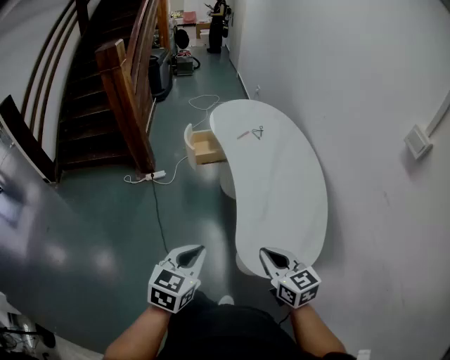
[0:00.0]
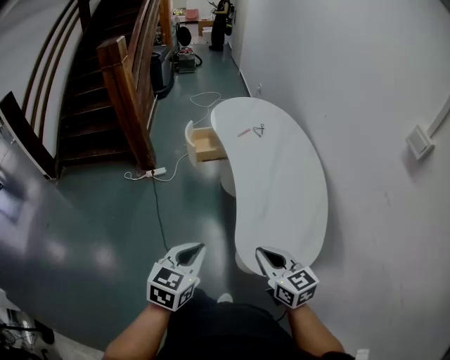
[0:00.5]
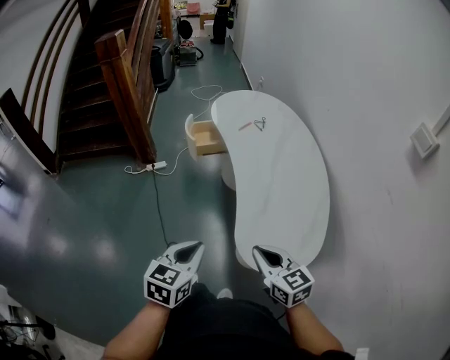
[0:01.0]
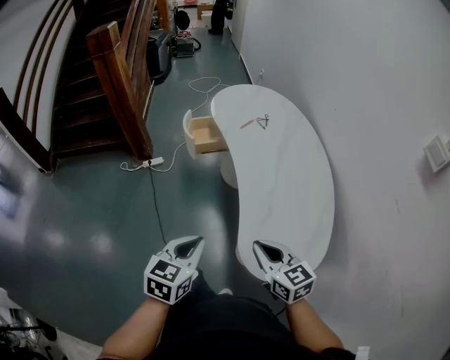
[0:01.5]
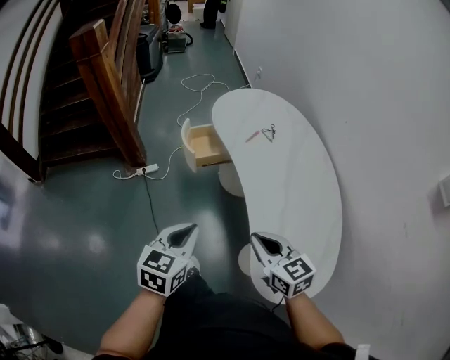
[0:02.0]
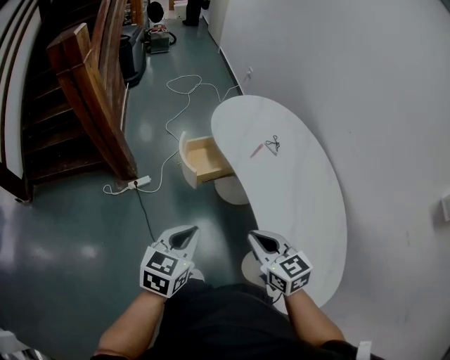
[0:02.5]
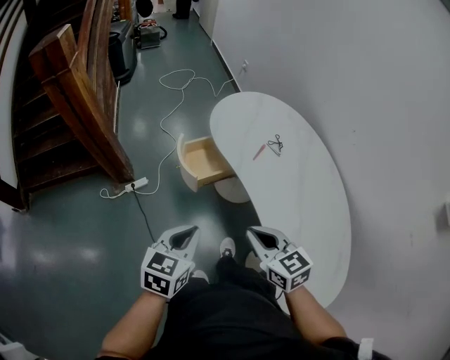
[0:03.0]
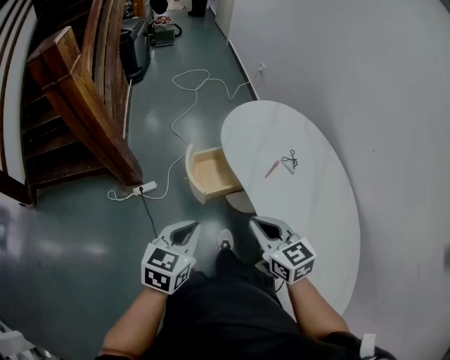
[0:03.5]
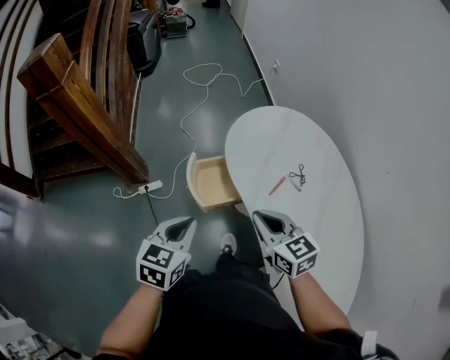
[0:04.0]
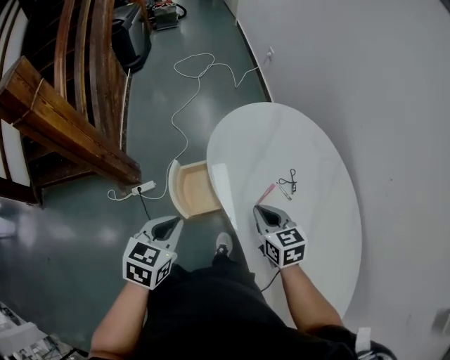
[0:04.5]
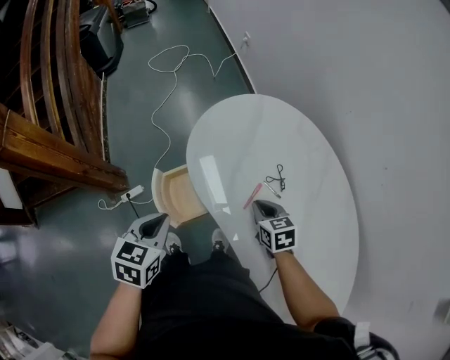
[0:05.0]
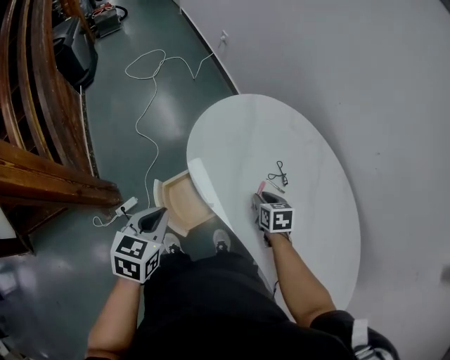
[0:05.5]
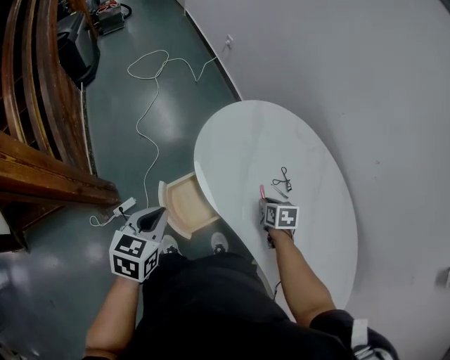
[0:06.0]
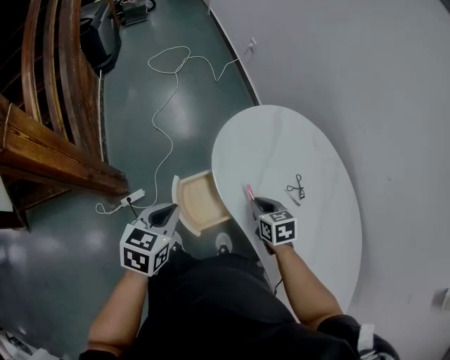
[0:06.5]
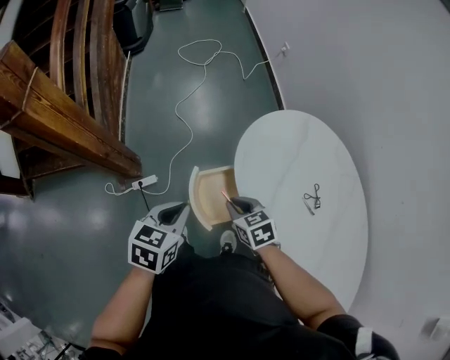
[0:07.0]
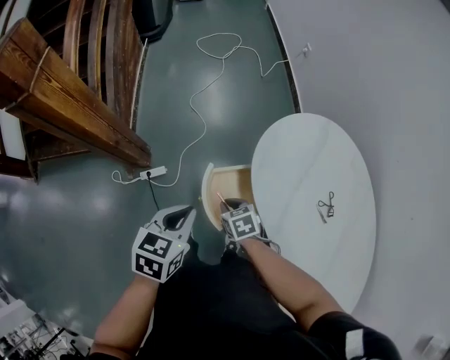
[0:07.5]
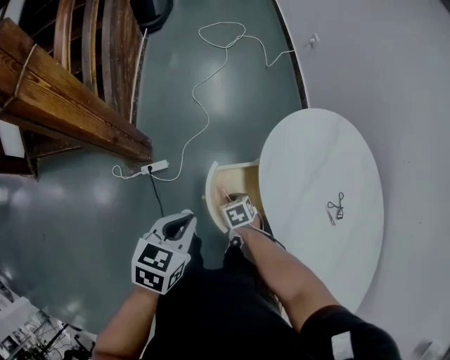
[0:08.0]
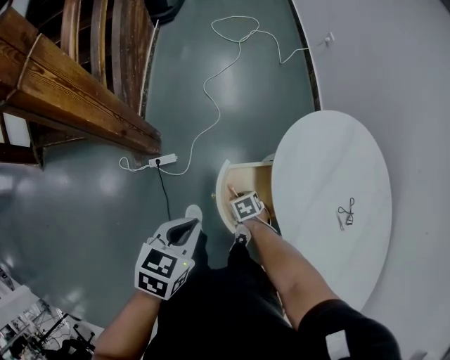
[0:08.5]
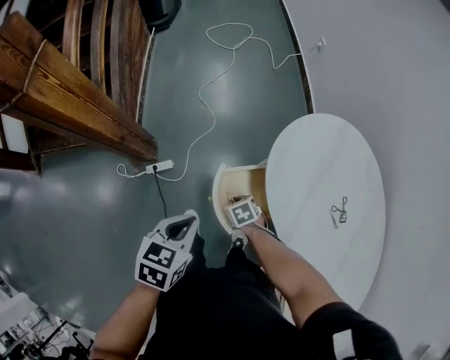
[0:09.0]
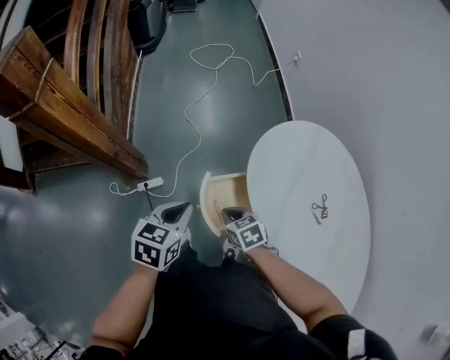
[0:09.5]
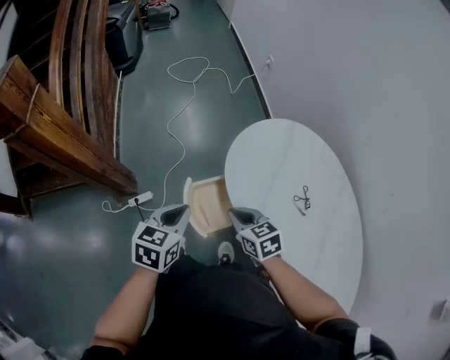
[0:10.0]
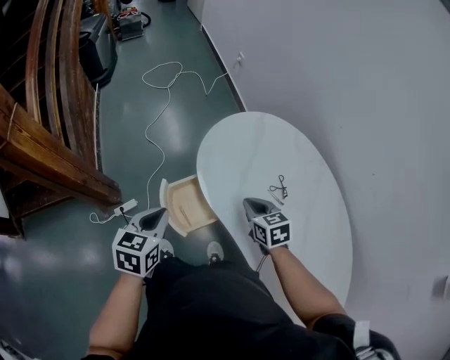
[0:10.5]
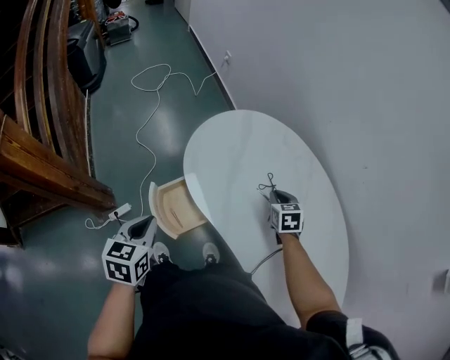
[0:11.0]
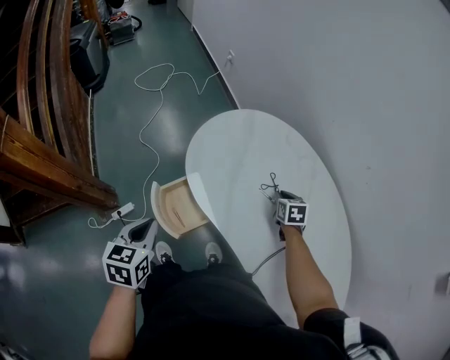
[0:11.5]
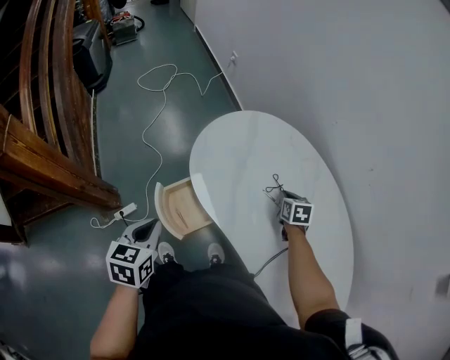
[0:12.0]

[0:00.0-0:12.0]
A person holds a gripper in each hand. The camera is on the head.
0:00.0 to 0:02.0: The right gripper travels forward and to the left by roughly 25 cm. The left gripper heads forward, covering some 25 cm.
0:02.0 to 0:04.0: Both grippers travel together forward, approximately 35 cm.
0:04.0 to 0:06.0: The left gripper changes place by some 20 cm. Meanwhile the right gripper moves downward, roughly 20 cm, and points its fingers some 30 degrees further downward.
0:06.0 to 0:08.0: The left gripper moves roughly 10 cm. The right gripper moves roughly 35 cm, and rotates around the line of its fingers by some 40 degrees, counterclockwise from behind.
0:08.0 to 0:10.0: The left gripper changes place by approximately 5 cm, while the right gripper goes about 25 cm upward, and changes its angle by some 30 degrees.
0:10.0 to 0:12.0: The right gripper goes about 35 cm to the right, and swivels some 40 degrees.

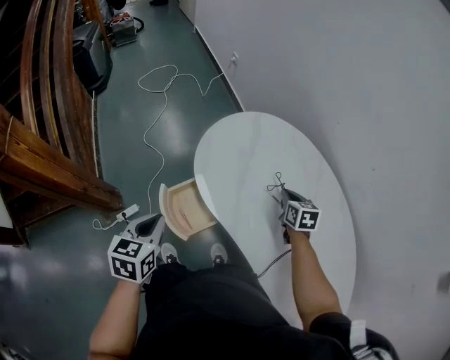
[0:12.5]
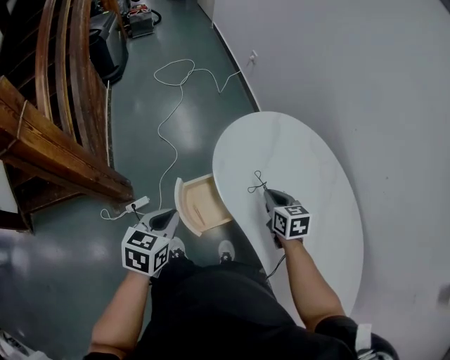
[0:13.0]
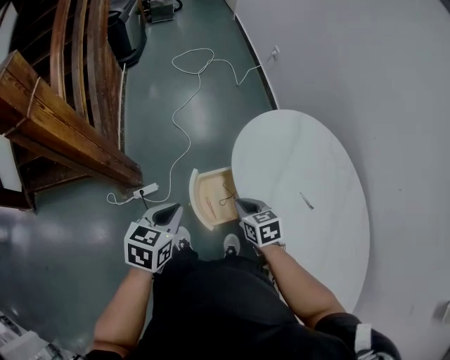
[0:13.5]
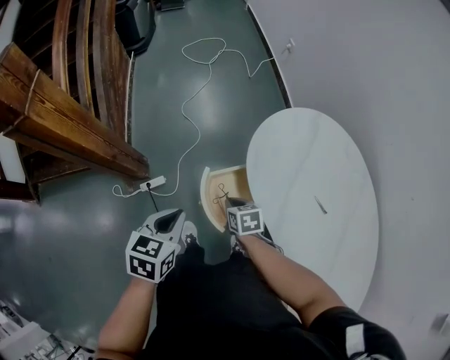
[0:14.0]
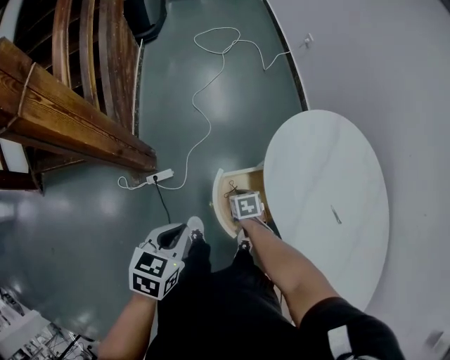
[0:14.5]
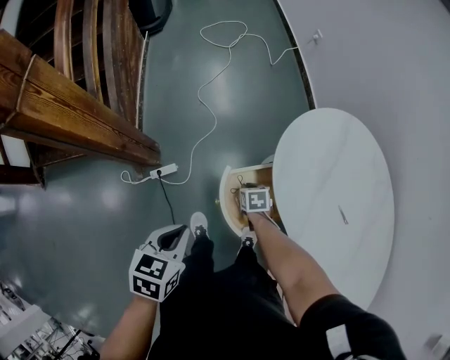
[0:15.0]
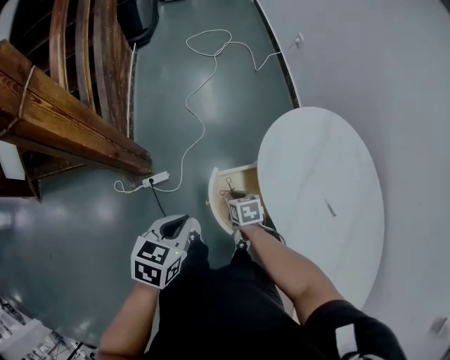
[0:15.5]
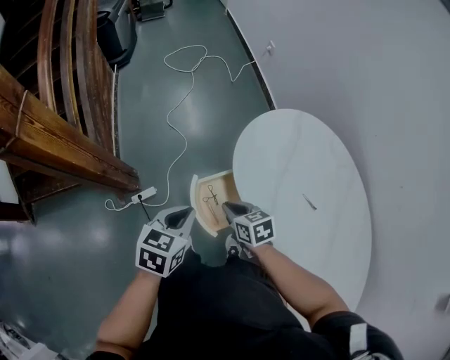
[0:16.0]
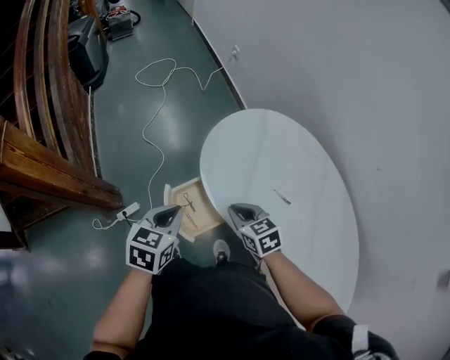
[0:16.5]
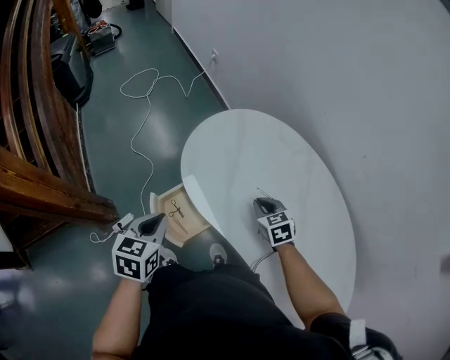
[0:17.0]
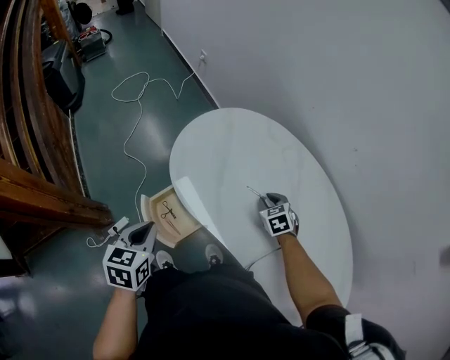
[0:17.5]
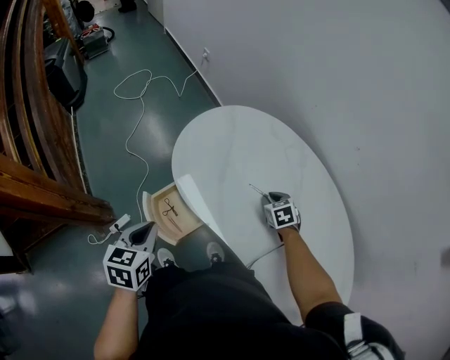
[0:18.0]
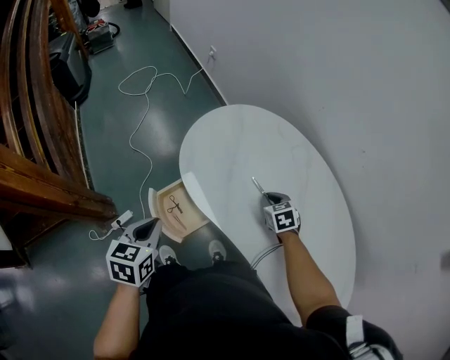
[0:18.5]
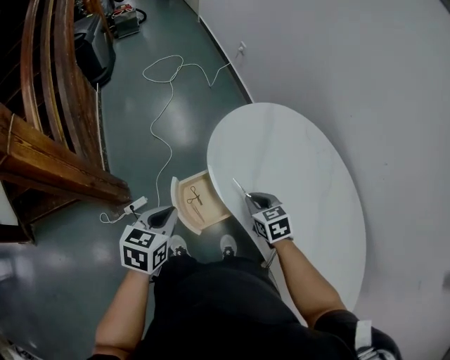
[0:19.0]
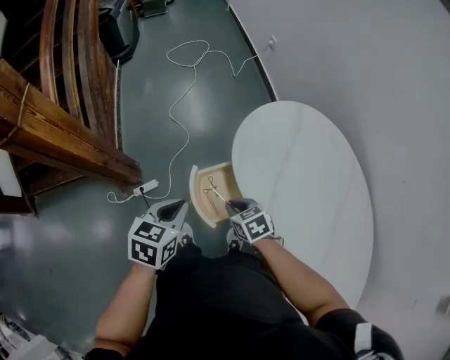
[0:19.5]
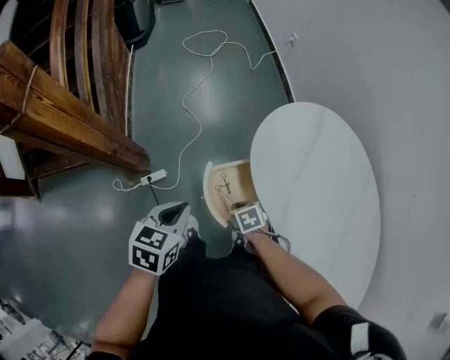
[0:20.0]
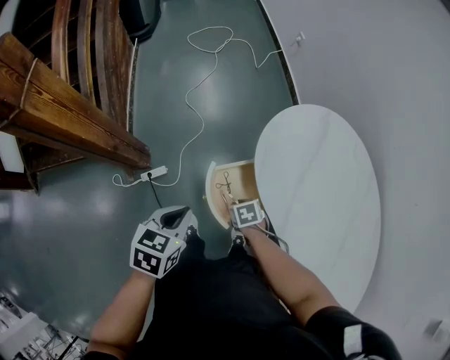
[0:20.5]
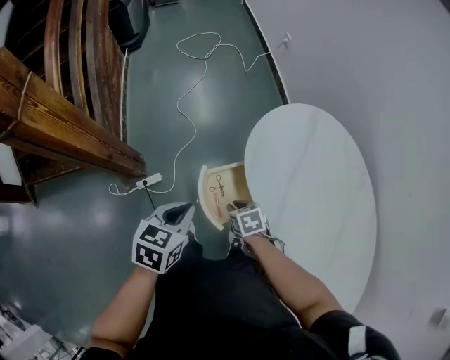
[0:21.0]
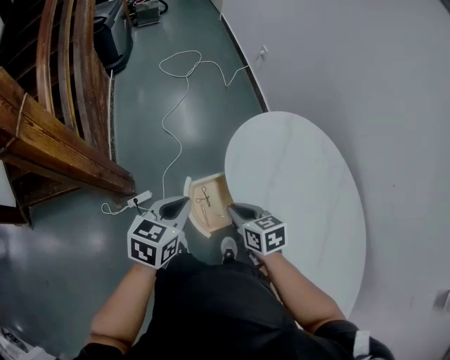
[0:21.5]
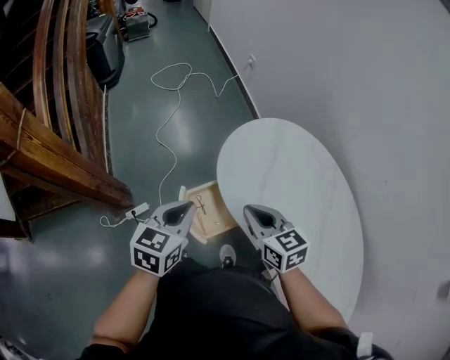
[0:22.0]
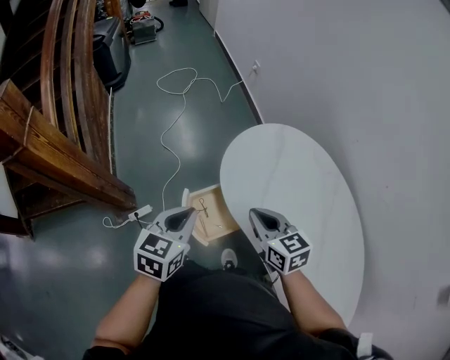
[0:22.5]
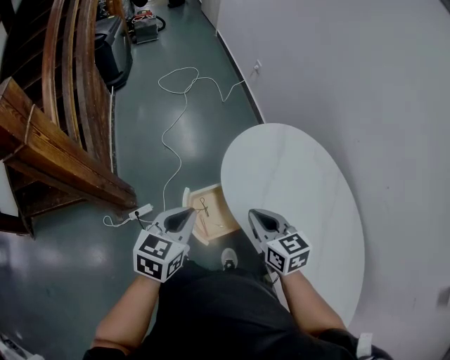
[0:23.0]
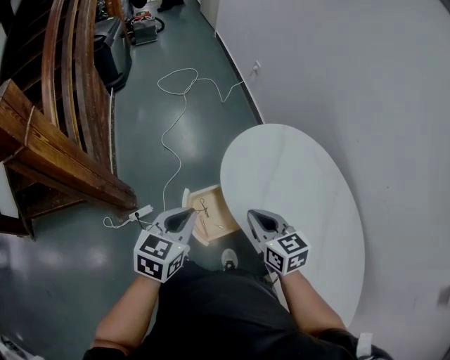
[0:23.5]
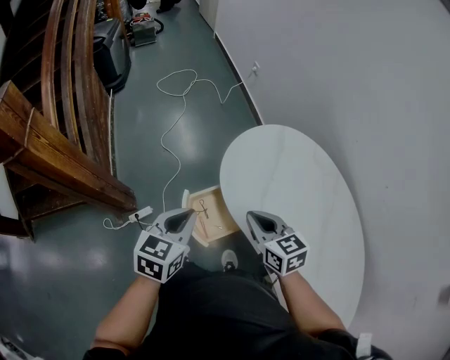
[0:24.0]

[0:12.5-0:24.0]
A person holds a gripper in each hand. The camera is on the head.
0:12.5 to 0:14.5: The left gripper moves to the left and downward, about 10 cm. The right gripper moves to the left and downward, approximately 40 cm, and turns by roughly 40 degrees.
0:14.5 to 0:16.5: The right gripper heads upward and to the right, covering some 25 cm, and rotates about 30 degrees. Meanwhile the left gripper is displaced to the right by roughly 15 cm.
0:16.5 to 0:18.5: The right gripper moves to the right, approximately 20 cm, and swivels approximately 20 degrees.
0:18.5 to 0:20.0: The left gripper changes place by about 10 cm. The right gripper changes place by some 35 cm, and rotates some 30 degrees.
0:20.0 to 0:22.0: The left gripper ends up approximately 10 cm from where it was; the right gripper shifts roughly 30 cm upward, and tilts its fingers about 40 degrees upward.
0:22.0 to 0:24.0: The grippers make only small movements.

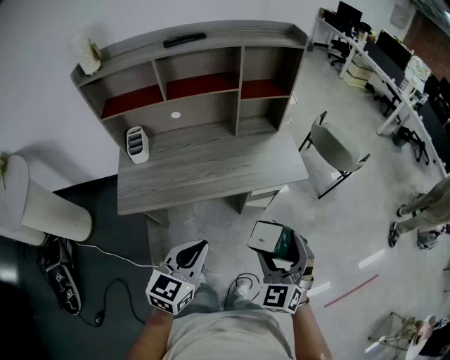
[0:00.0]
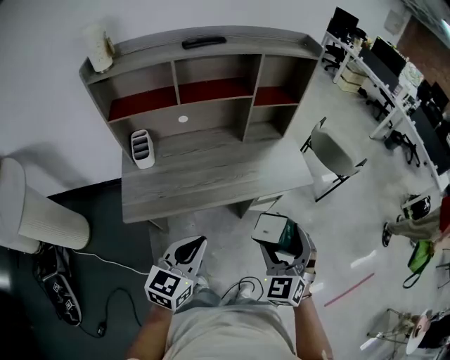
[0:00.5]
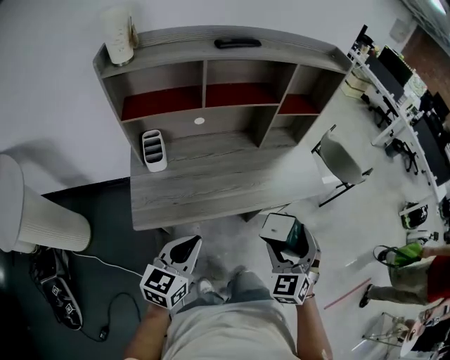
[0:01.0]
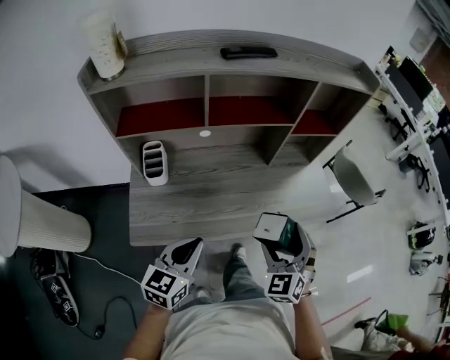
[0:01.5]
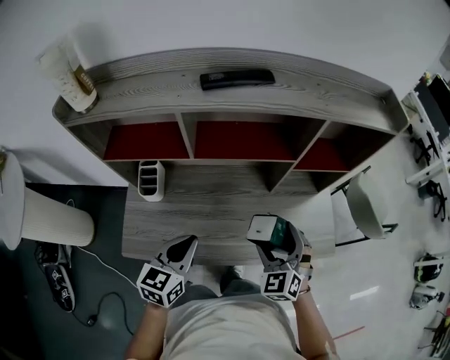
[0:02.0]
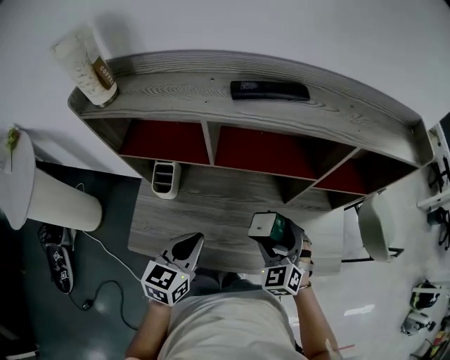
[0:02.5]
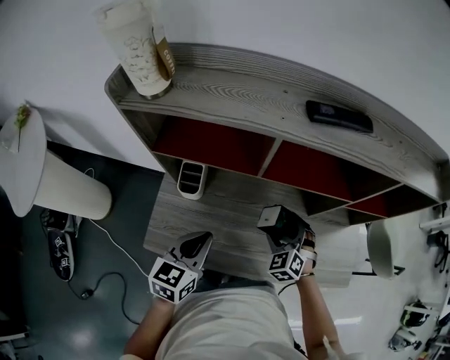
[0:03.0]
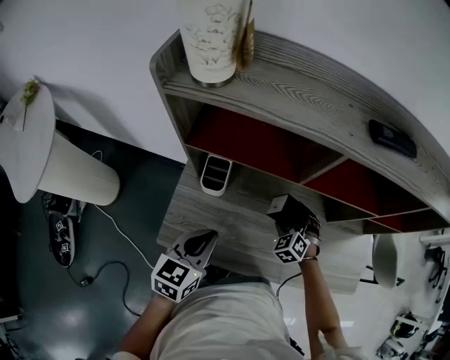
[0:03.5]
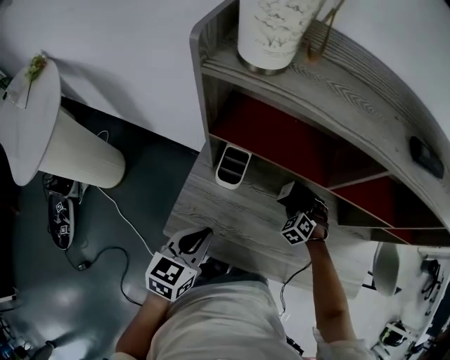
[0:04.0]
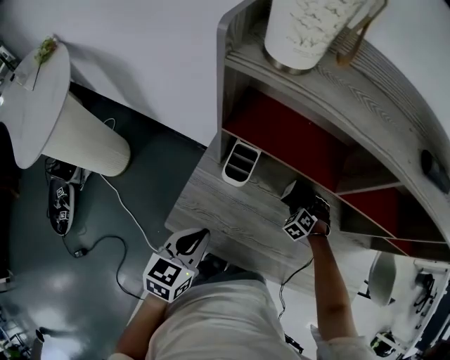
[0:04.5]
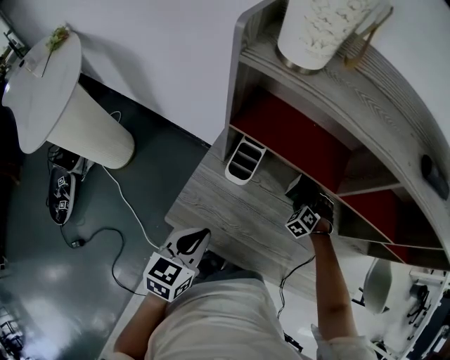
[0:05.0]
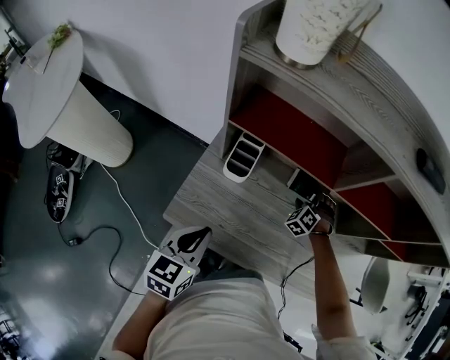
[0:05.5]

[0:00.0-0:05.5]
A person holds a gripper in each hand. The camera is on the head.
0:00.0 to 0:02.0: The two grippers go roughly 40 cm forward and to the left.
0:02.0 to 0:03.5: The left gripper heads to the left, covering some 20 cm. The right gripper shifts about 30 cm to the left, downward and forward, and swivels approximately 20 degrees.
0:03.5 to 0:05.5: The left gripper heads backward, covering about 5 cm, while the right gripper shifts approximately 10 cm forward and downward, and turns by some 20 degrees.
